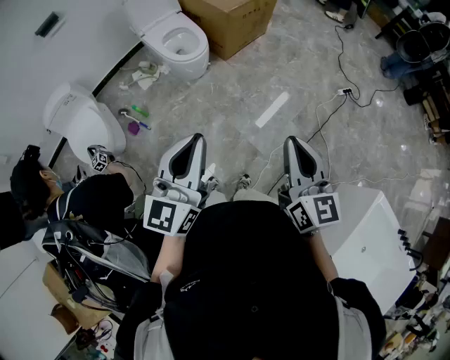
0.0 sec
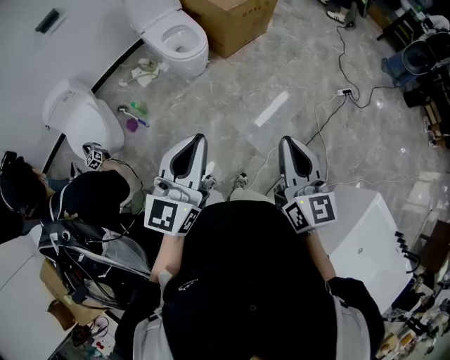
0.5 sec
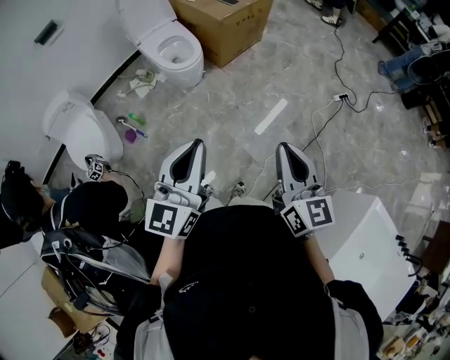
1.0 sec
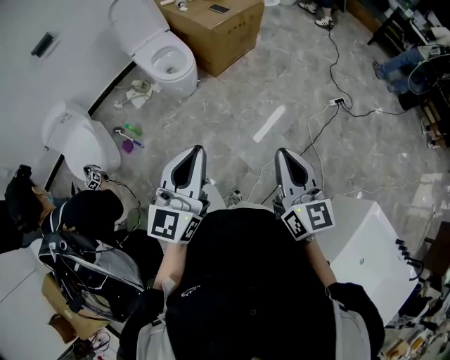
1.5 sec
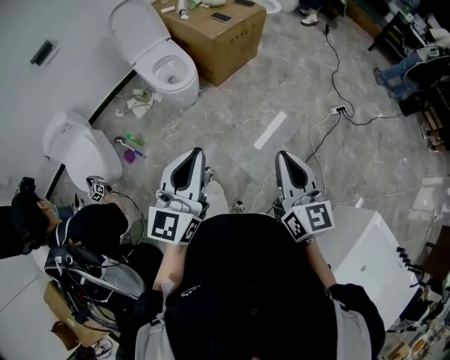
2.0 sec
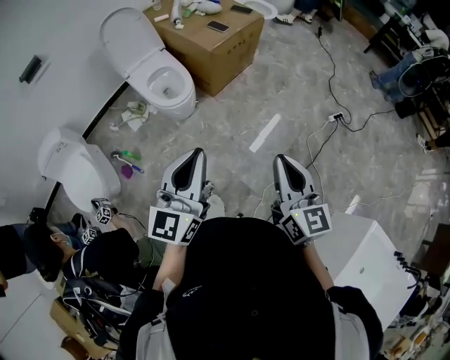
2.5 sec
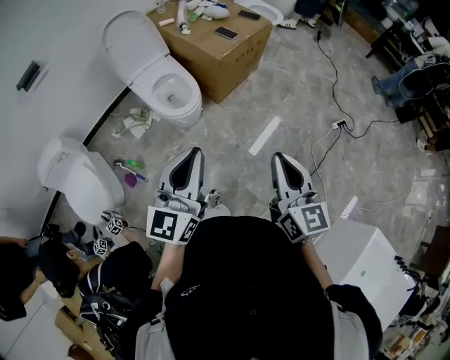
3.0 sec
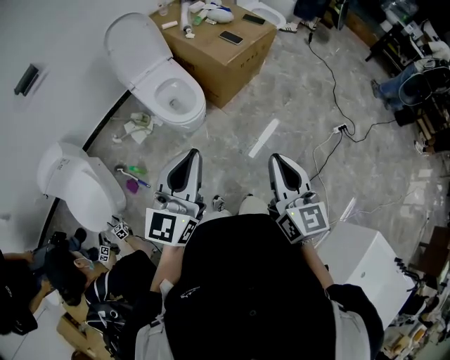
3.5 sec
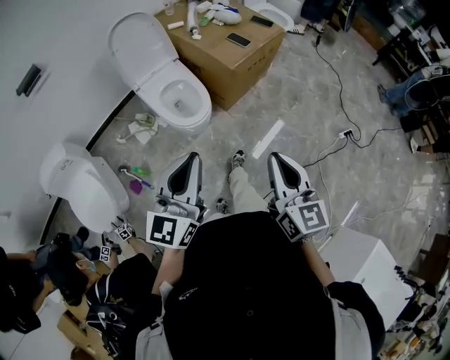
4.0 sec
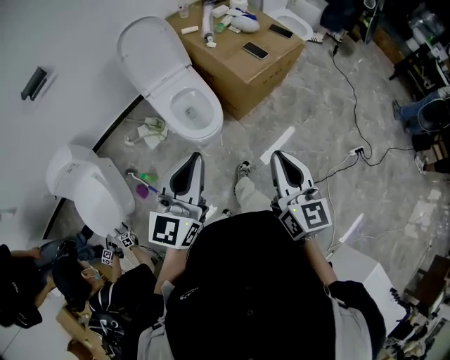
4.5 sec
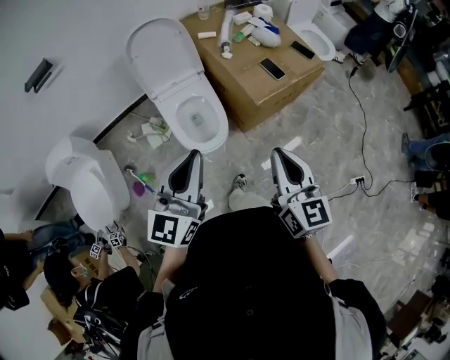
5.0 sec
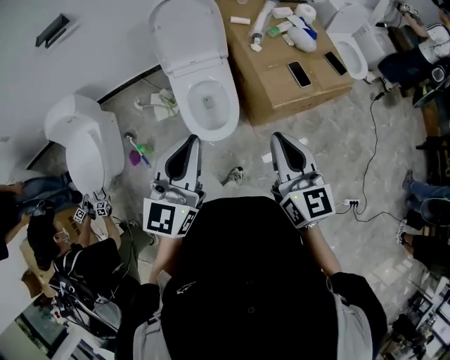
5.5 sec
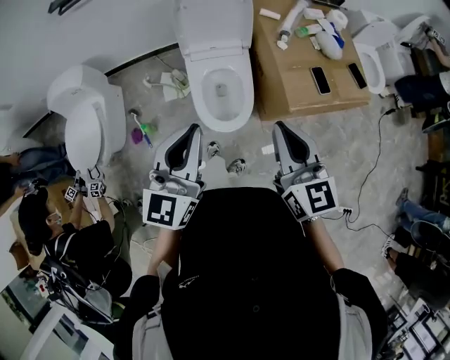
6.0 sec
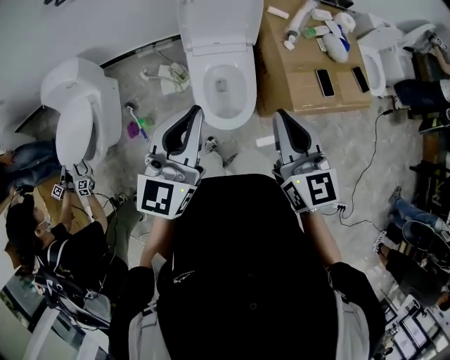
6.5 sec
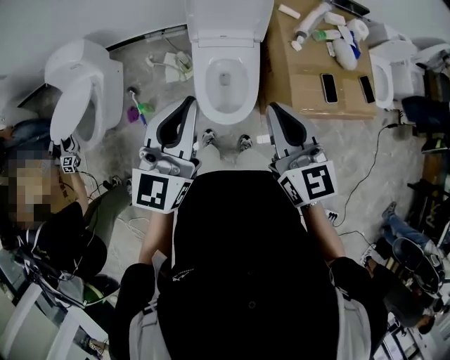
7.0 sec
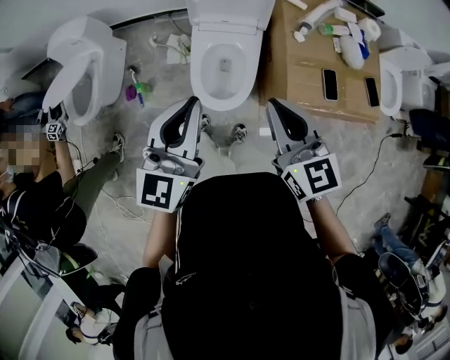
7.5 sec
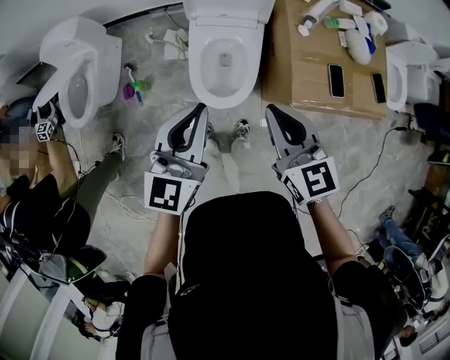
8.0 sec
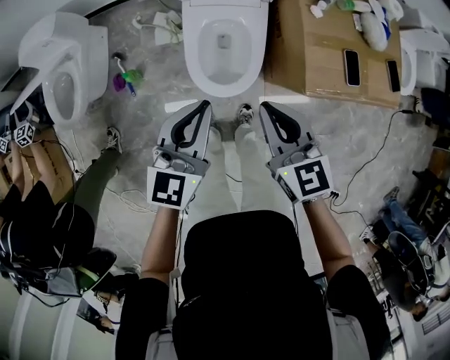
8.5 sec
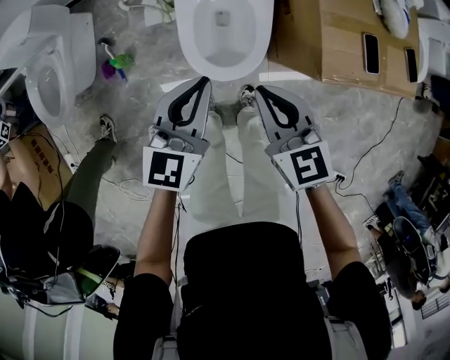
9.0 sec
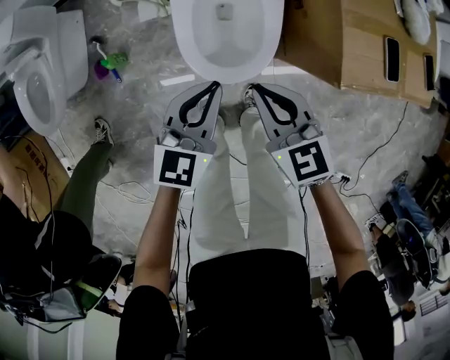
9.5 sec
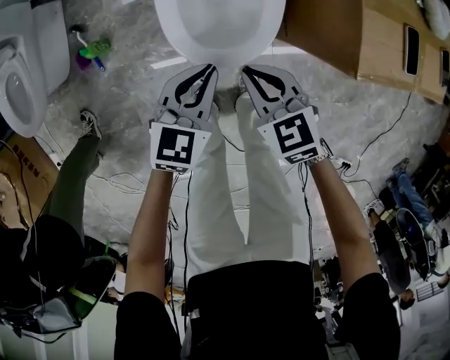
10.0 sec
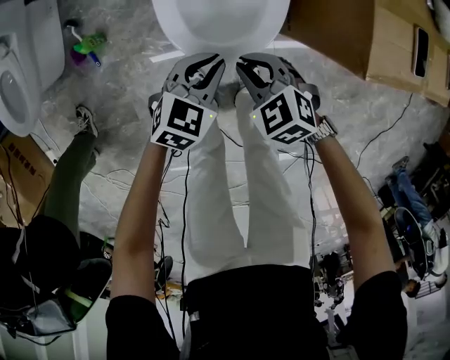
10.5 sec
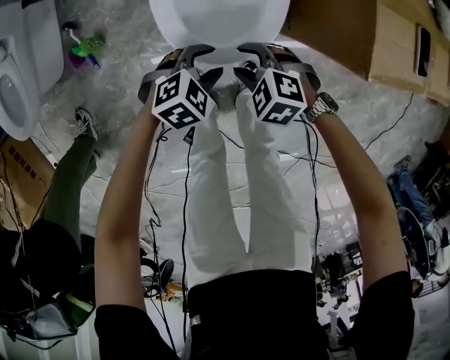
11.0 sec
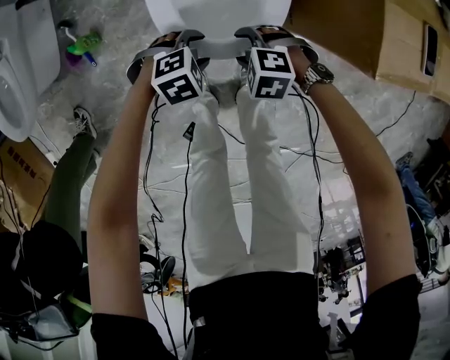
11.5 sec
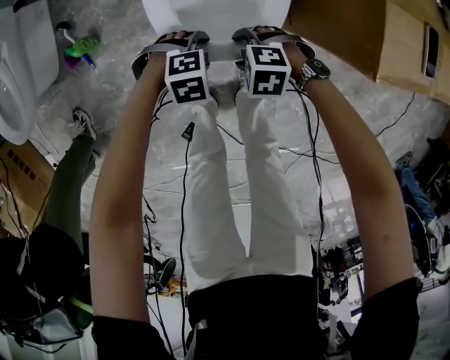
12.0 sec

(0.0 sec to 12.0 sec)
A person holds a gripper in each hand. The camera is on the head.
0.0 sec - 2.0 sec: The two grippers go about 10 cm forward and to the right.
2.0 sec - 4.0 sec: Both grippers travel together forward and to the left, some 30 cm.
4.0 sec - 6.0 sec: The right gripper ends up approximately 40 cm from where it was, and swivels approximately 40 degrees. The left gripper ends up about 30 cm from where it was, and turns by approximately 30 degrees.
6.0 sec - 8.0 sec: The left gripper shifts approximately 10 cm downward and to the right, while the right gripper shifts approximately 10 cm downward and forward, and turns by some 20 degrees.
8.0 sec - 10.0 sec: Both grippers travel together downward, about 40 cm. The left gripper changes its angle by some 30 degrees. The right gripper changes its angle by roughly 30 degrees.
10.0 sec - 12.0 sec: Both grippers move downward, approximately 20 cm. The left gripper points its fingers approximately 40 degrees further downward, and opens its fingers. The right gripper changes its angle by roughly 60 degrees, and opens up.

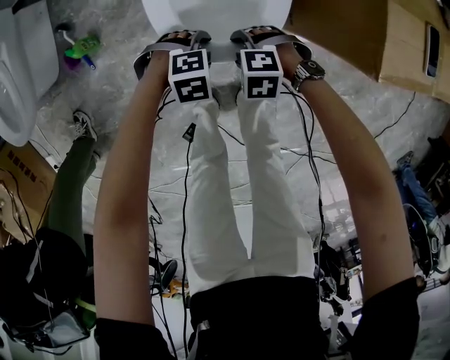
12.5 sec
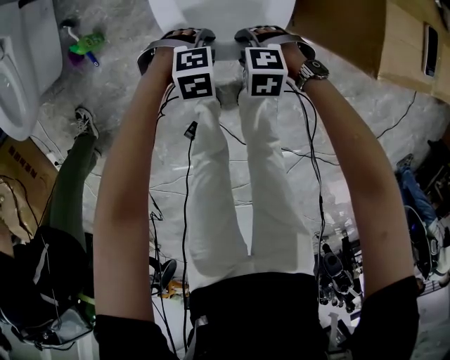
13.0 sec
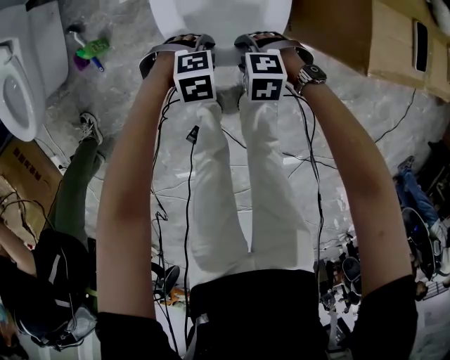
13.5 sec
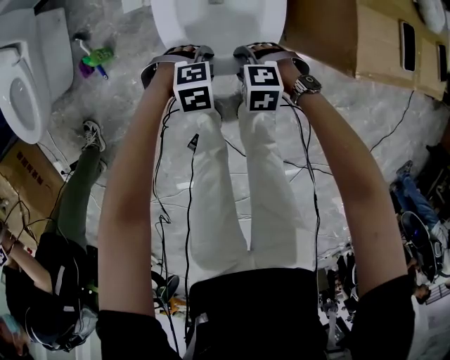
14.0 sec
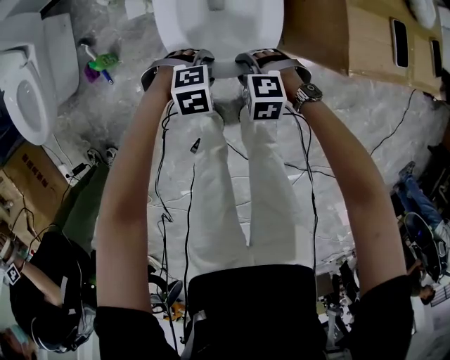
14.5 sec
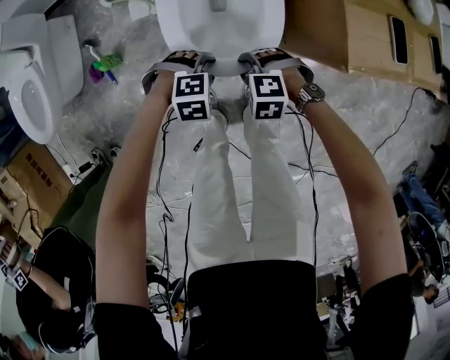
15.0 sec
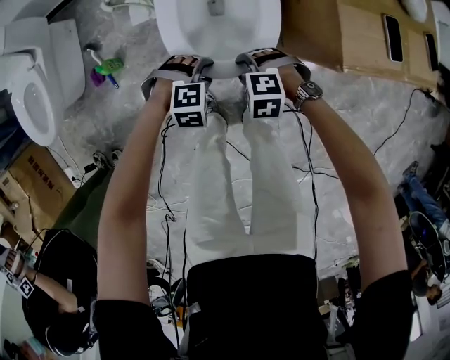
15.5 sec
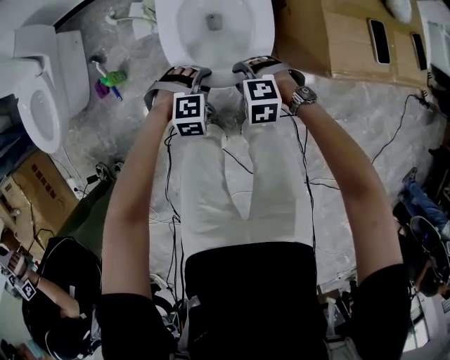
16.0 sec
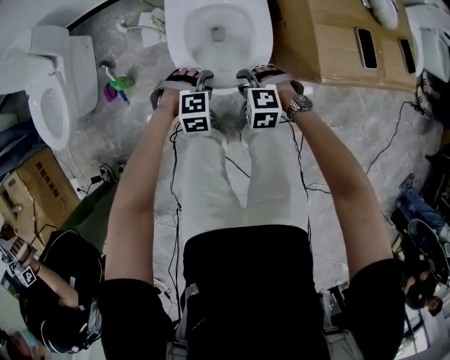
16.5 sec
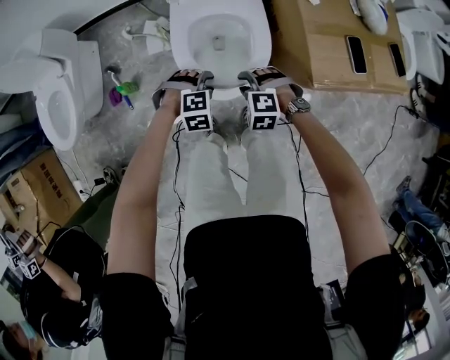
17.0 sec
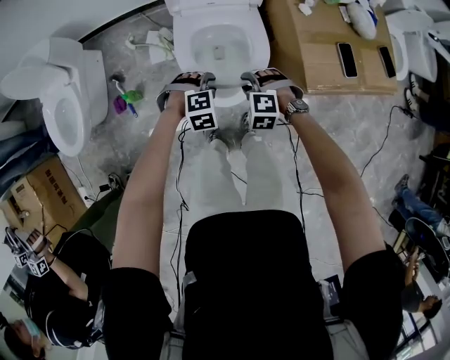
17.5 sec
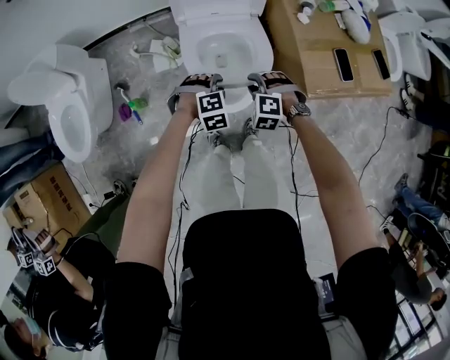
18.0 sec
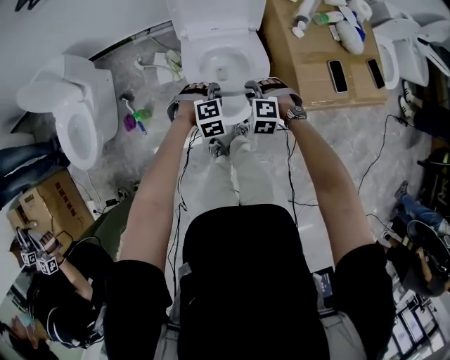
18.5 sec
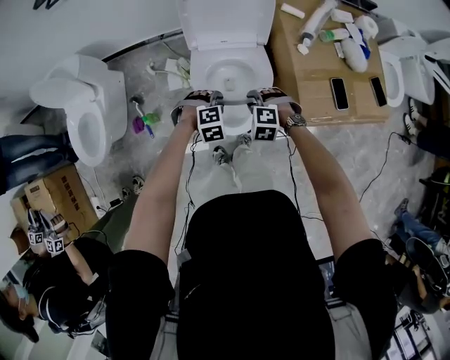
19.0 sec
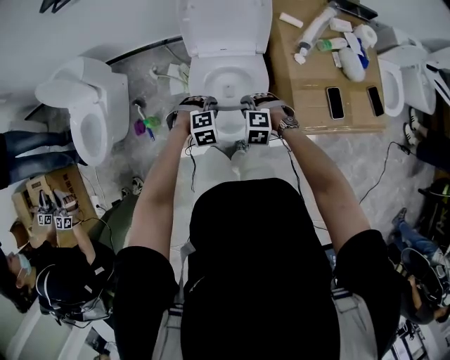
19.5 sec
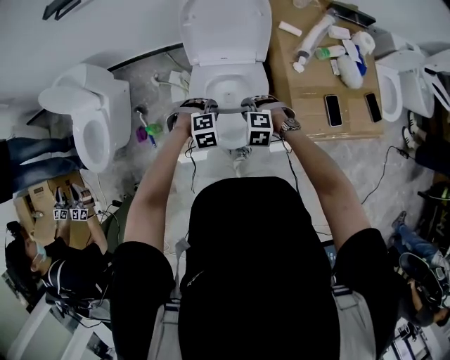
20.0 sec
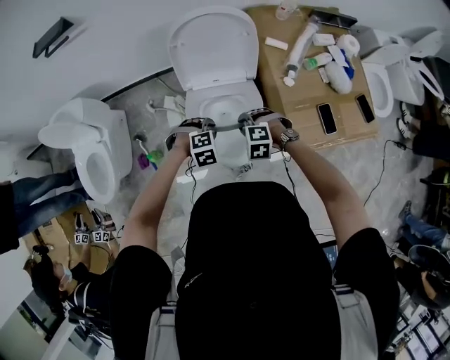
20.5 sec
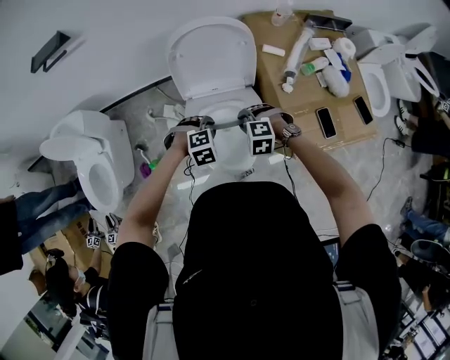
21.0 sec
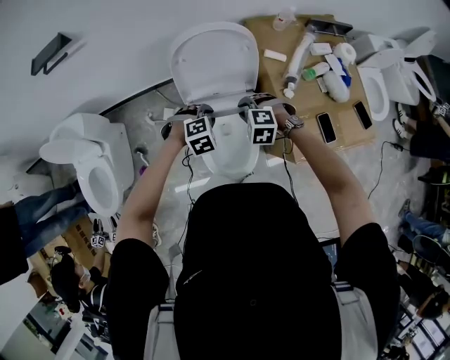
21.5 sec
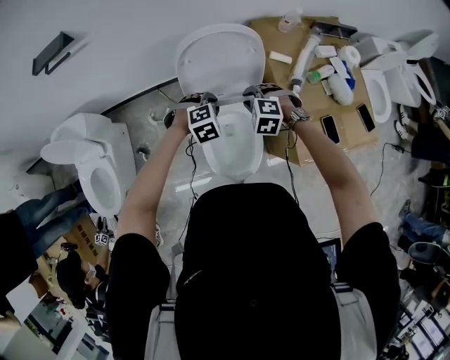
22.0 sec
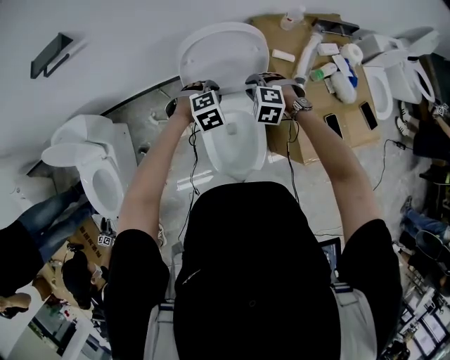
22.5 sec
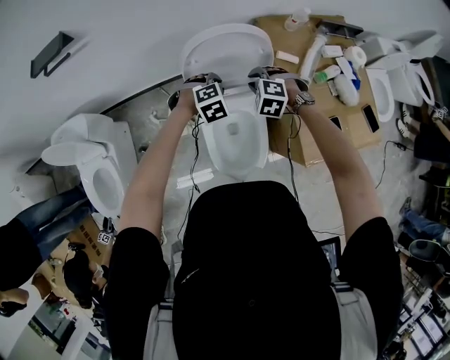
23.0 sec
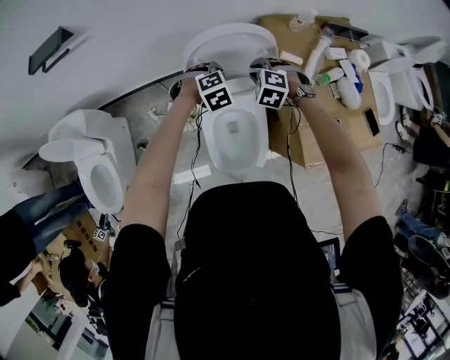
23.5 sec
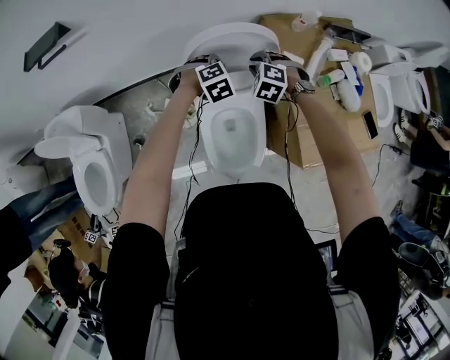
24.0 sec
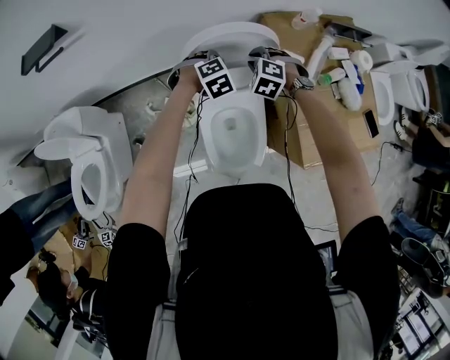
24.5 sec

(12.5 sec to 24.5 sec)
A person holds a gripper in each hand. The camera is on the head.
12.5 sec - 14.5 sec: Both grippers move upward, roughly 10 cm.
14.5 sec - 16.5 sec: Both grippers move upward, roughly 10 cm.
16.5 sec - 18.5 sec: Both grippers move upward and forward, some 15 cm.
18.5 sec - 20.5 sec: The two grippers go approximately 10 cm forward and upward.
20.5 sec - 22.5 sec: Both grippers move forward, about 20 cm.
22.5 sec - 24.5 sec: The grippers both shift forward by roughly 10 cm.

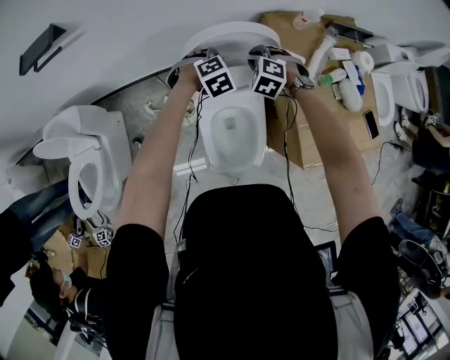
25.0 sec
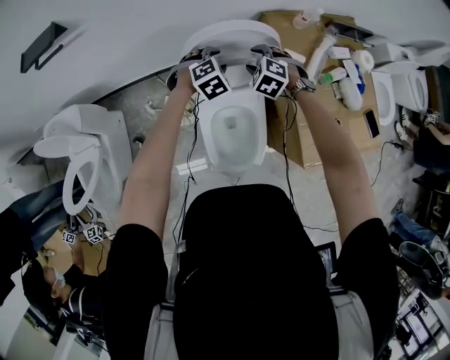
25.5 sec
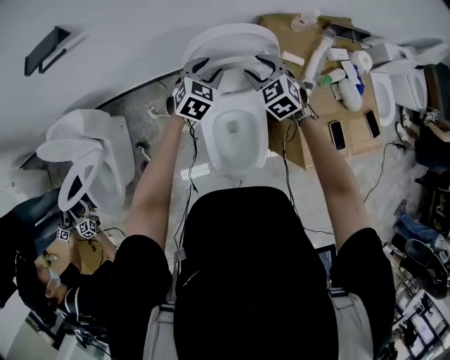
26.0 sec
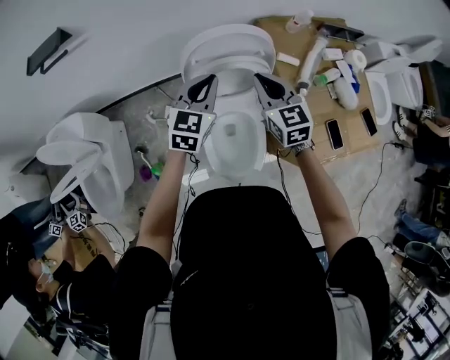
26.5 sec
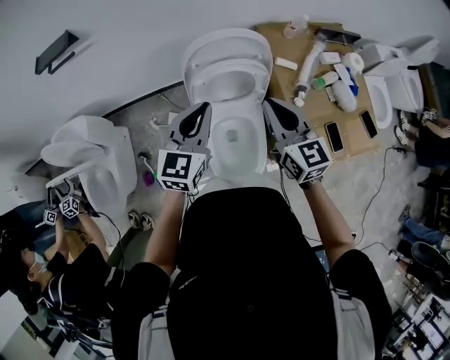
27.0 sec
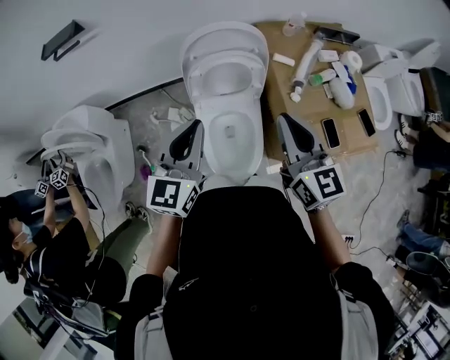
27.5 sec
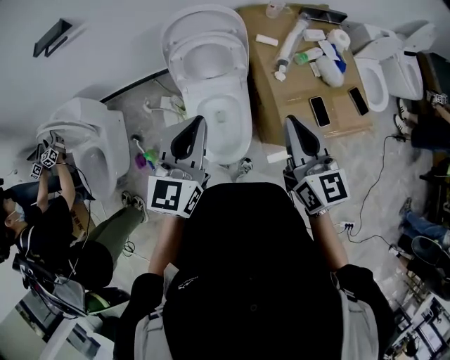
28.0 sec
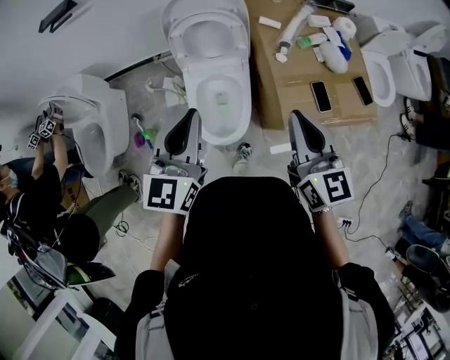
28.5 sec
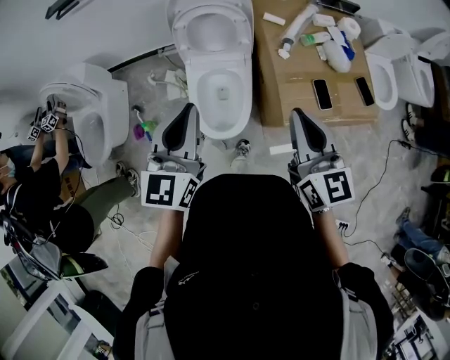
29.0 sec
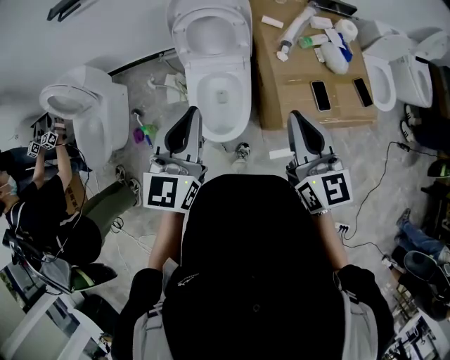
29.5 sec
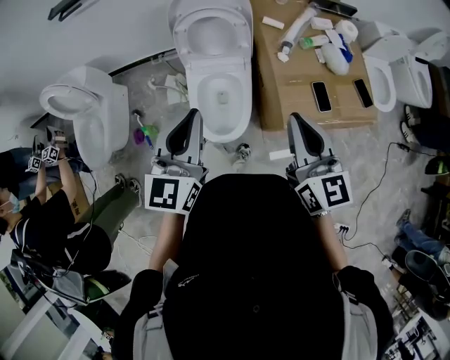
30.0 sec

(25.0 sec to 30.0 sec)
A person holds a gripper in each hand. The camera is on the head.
25.0 sec - 27.5 sec: The two grippers go approximately 40 cm backward and upward. The left gripper tips its fingers upward by approximately 60 degrees, and opens, then closes once more. The right gripper tilts its fingers approximately 50 degrees upward, and opens and closes again.
27.5 sec - 30.0 sec: Both grippers travel together backward and to the right, roughly 20 cm.
